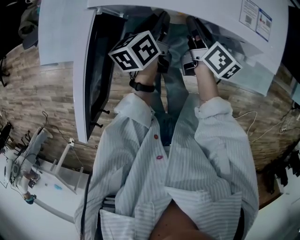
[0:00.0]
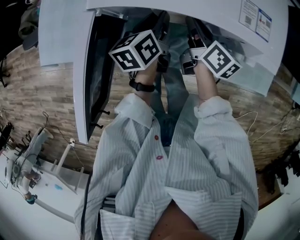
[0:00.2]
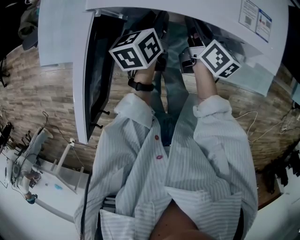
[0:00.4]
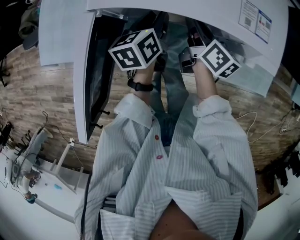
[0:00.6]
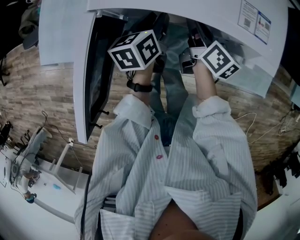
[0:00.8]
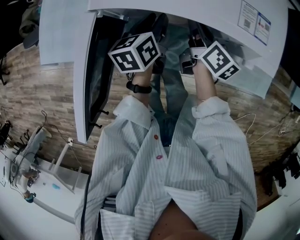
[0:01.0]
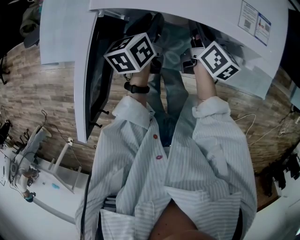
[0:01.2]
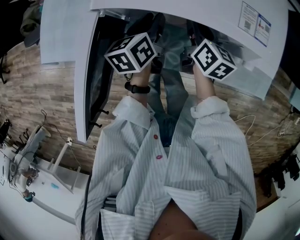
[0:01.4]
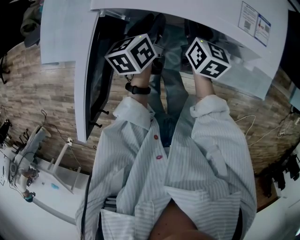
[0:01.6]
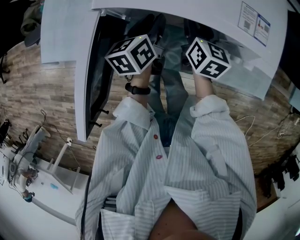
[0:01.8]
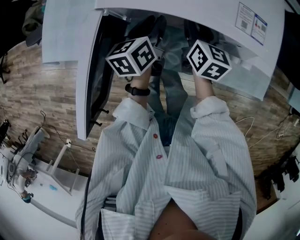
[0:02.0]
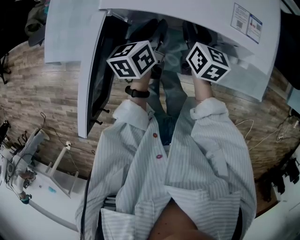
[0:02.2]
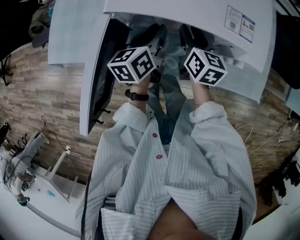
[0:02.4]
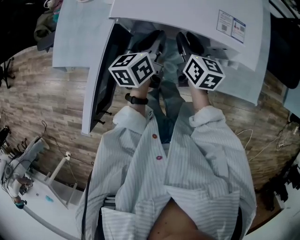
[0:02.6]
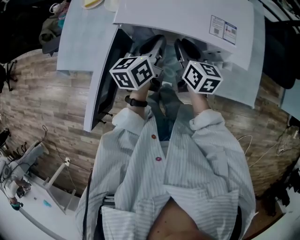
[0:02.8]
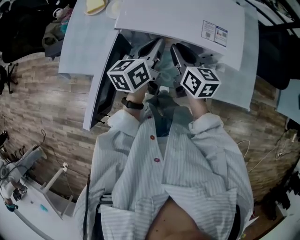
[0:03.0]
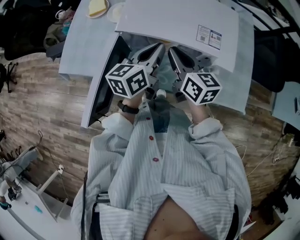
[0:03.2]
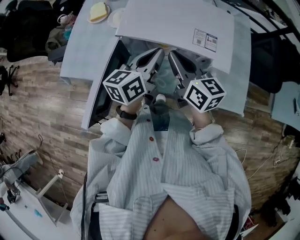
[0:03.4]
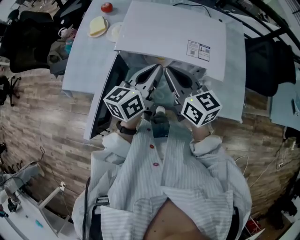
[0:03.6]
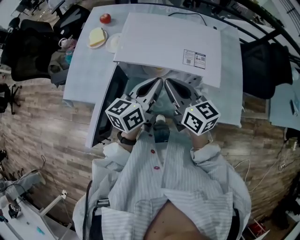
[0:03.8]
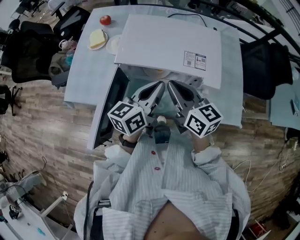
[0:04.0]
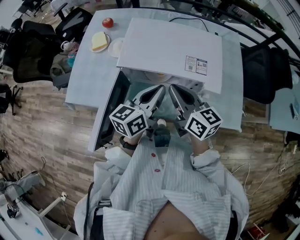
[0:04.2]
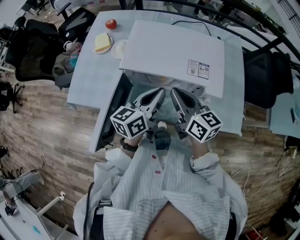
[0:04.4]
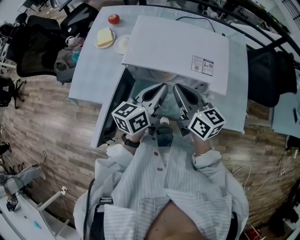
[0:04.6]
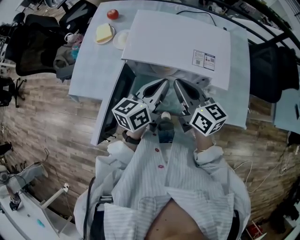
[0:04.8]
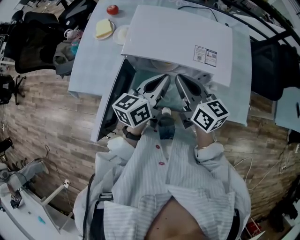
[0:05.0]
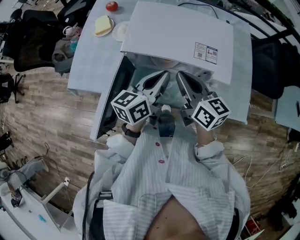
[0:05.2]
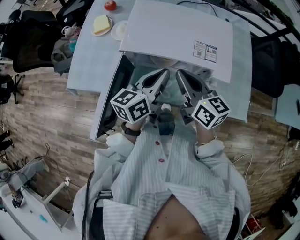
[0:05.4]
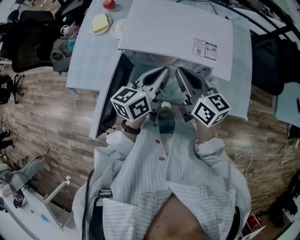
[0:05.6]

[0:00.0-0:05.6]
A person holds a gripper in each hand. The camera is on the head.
0:00.0 to 0:01.4: The grippers move only a little.
0:01.4 to 0:02.8: The grippers both shift upward by roughly 10 cm.
0:02.8 to 0:04.2: Both grippers move upward and backward, approximately 15 cm. The right gripper rotates some 20 degrees.
0:04.2 to 0:05.6: There are only small adjustments of the grippers.

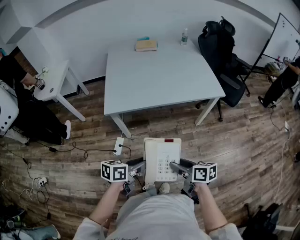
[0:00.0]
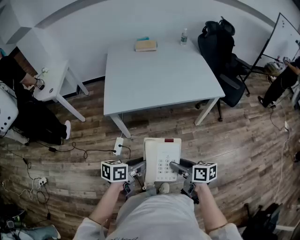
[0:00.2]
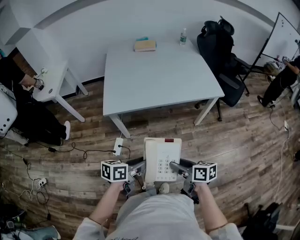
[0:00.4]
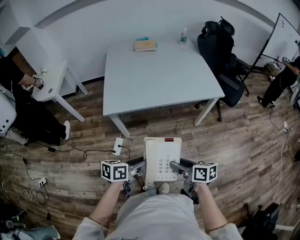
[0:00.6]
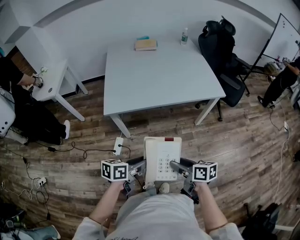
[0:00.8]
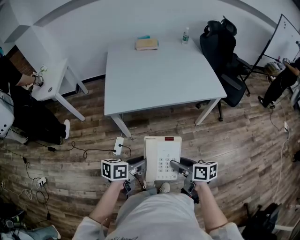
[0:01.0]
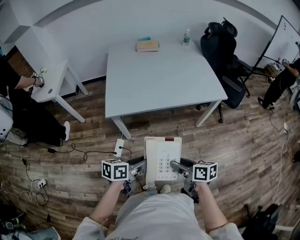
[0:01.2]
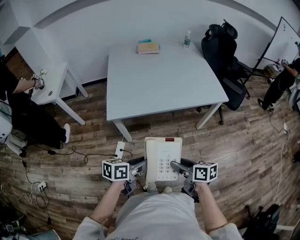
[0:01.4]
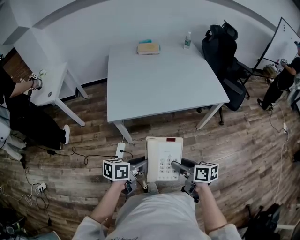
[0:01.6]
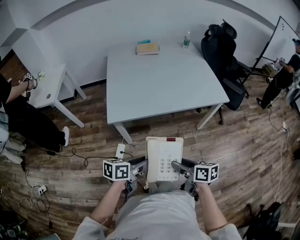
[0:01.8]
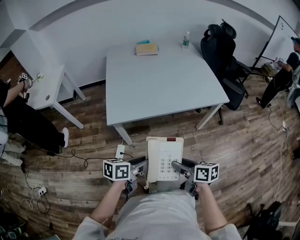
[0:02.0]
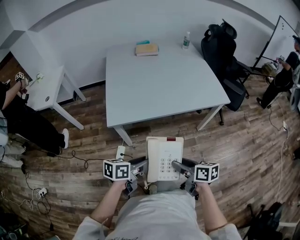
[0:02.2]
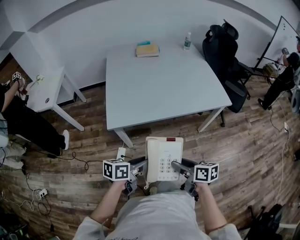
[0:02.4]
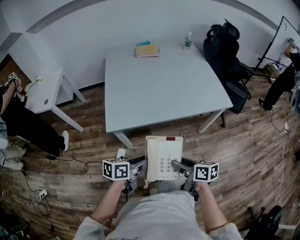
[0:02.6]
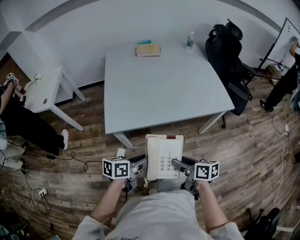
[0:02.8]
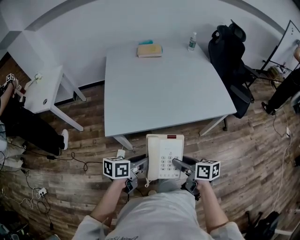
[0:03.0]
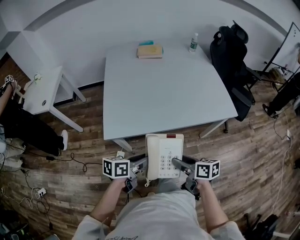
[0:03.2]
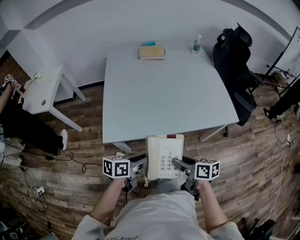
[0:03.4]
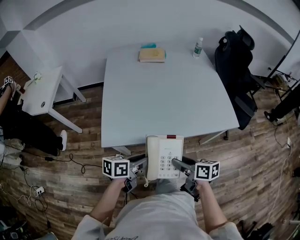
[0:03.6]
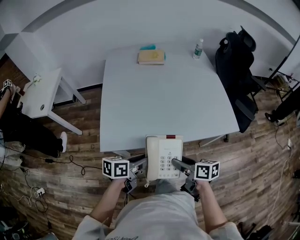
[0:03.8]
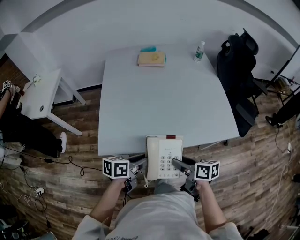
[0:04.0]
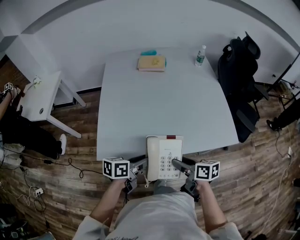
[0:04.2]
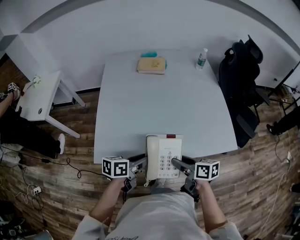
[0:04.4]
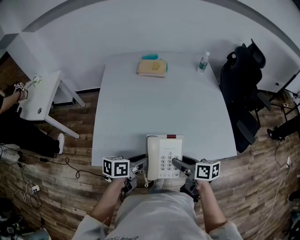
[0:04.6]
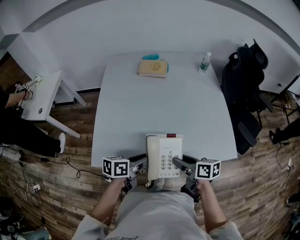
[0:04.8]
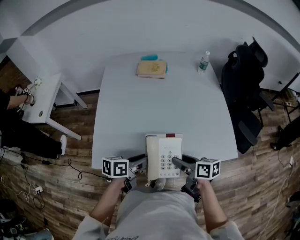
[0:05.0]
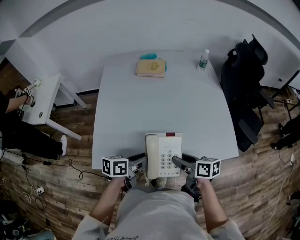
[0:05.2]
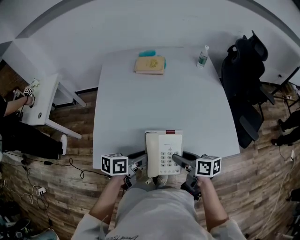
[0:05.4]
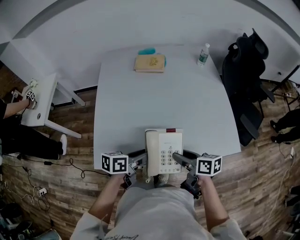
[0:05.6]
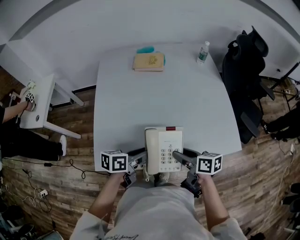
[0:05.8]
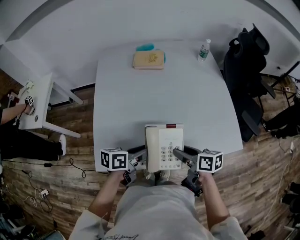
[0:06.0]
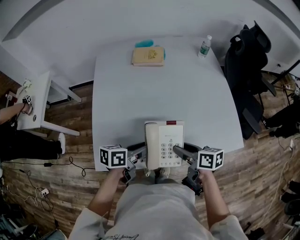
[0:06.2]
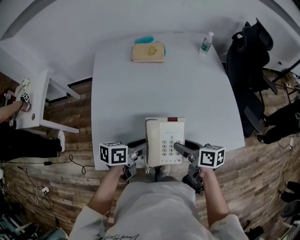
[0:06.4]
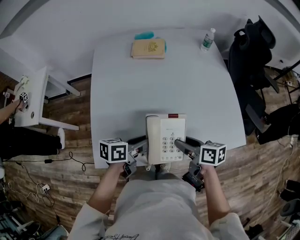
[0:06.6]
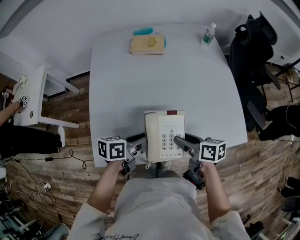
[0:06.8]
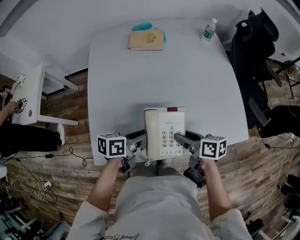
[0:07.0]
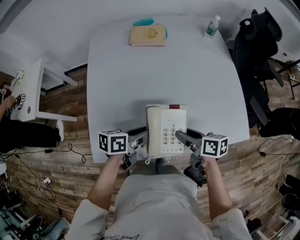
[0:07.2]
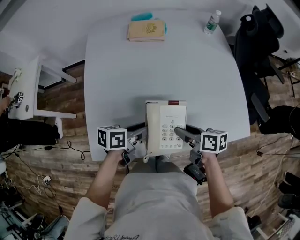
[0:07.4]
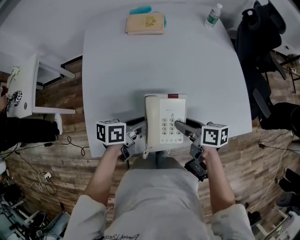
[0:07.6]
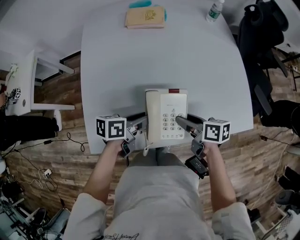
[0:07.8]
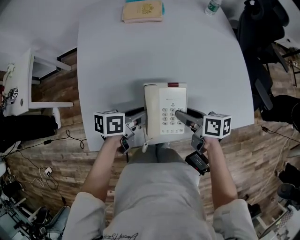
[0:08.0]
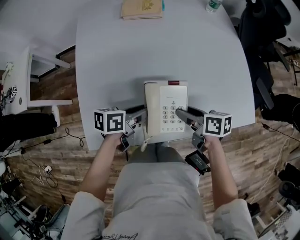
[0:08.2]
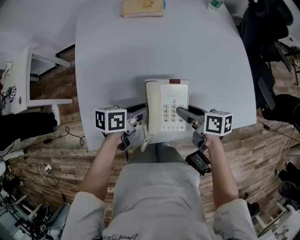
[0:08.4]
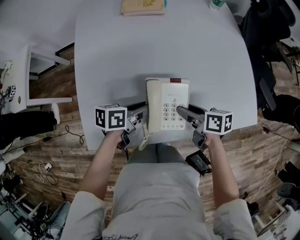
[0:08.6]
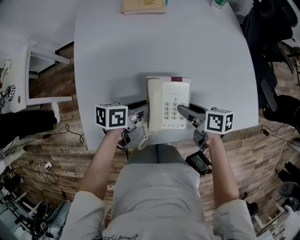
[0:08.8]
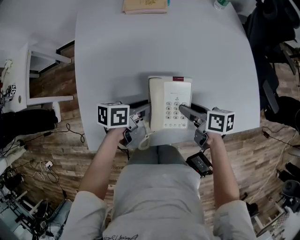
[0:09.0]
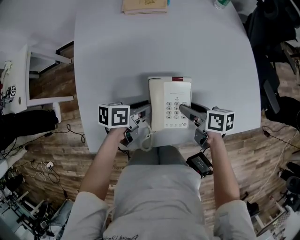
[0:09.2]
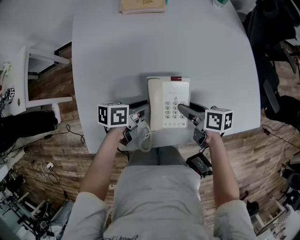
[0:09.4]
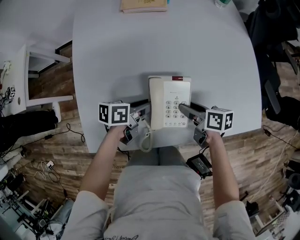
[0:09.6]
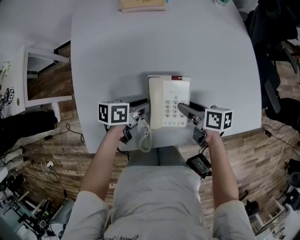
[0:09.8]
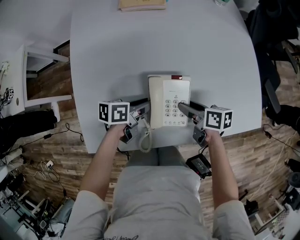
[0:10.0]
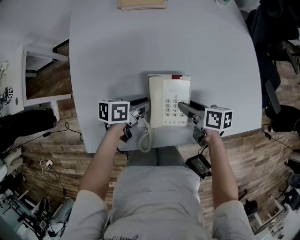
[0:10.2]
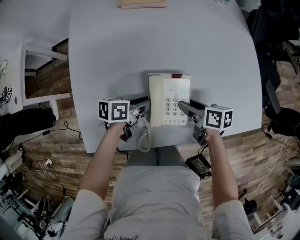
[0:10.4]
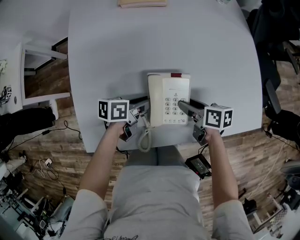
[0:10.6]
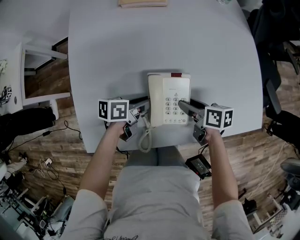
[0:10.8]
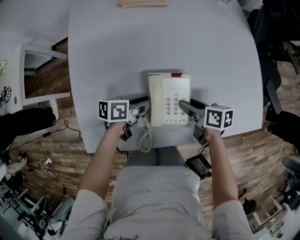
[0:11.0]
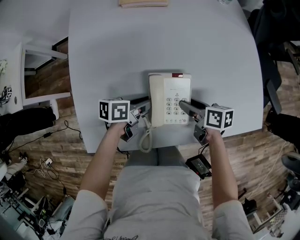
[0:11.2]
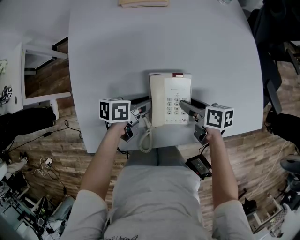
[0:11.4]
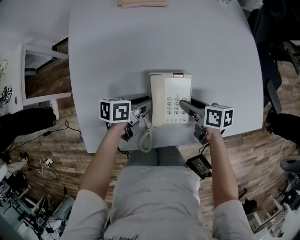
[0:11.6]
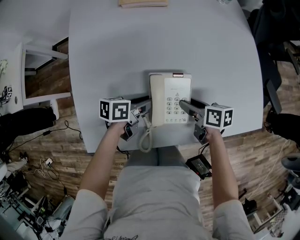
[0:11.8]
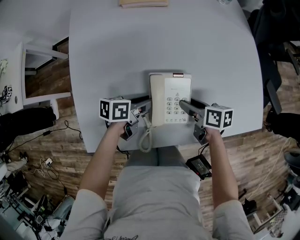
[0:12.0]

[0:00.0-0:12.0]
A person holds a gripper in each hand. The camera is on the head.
0:00.0 to 0:01.6: Both grippers travel together forward, about 5 cm.
0:01.6 to 0:03.0: Both grippers move forward, some 15 cm.
0:03.0 to 0:04.4: The grippers both shift forward by approximately 20 cm.
0:04.4 to 0:06.0: Both grippers move forward, some 10 cm.
0:06.0 to 0:07.6: The left gripper shifts some 10 cm forward and downward, while the right gripper goes roughly 10 cm downward and forward.
0:07.6 to 0:09.0: The two grippers go about 5 cm downward.
0:09.0 to 0:10.4: The grippers make only small movements.
0:10.4 to 0:12.0: The two grippers keep their place.

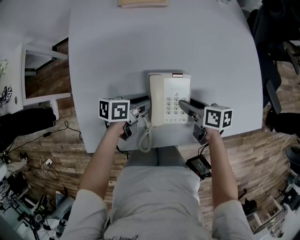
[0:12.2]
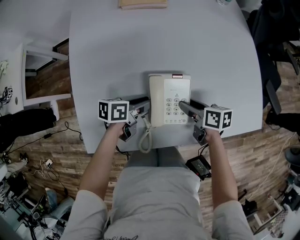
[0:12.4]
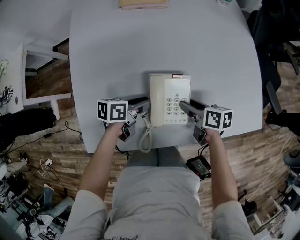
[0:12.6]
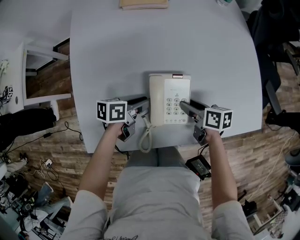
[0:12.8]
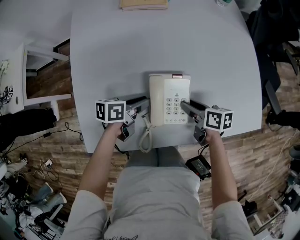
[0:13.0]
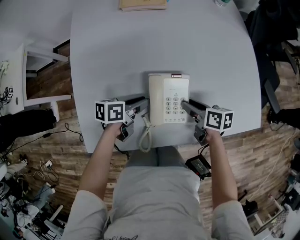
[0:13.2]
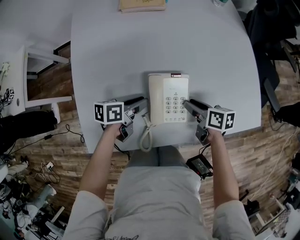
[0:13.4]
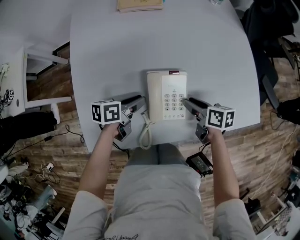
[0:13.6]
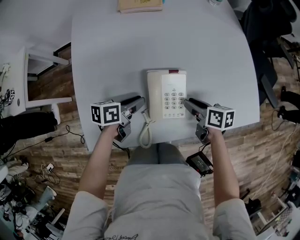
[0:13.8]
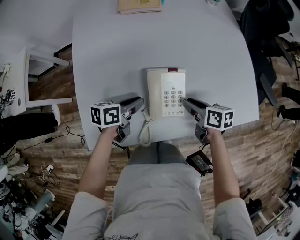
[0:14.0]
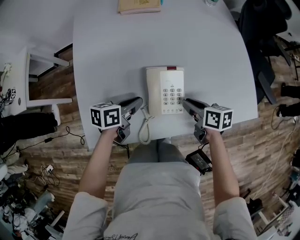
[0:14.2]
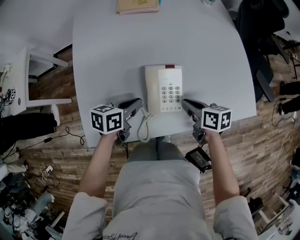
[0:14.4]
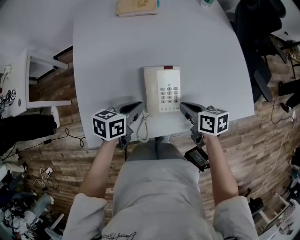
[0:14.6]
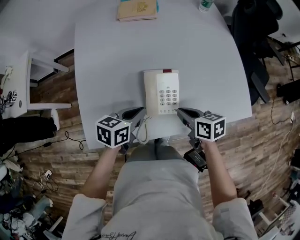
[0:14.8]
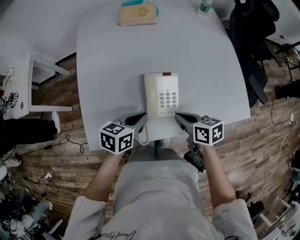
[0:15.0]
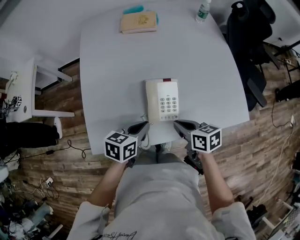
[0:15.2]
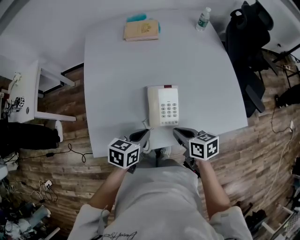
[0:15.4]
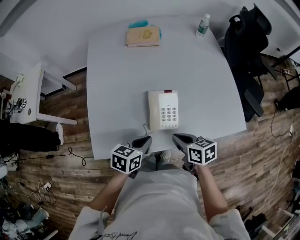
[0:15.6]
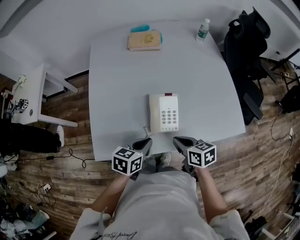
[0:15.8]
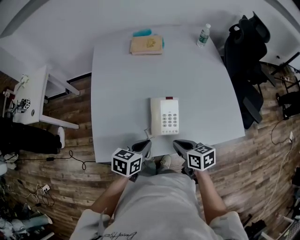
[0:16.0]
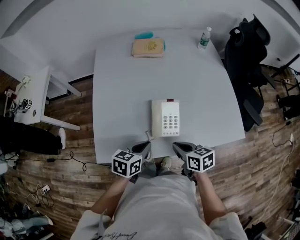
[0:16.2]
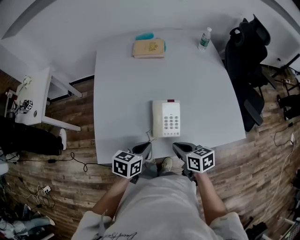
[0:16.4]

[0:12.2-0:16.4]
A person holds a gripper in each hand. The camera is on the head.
0:12.2 to 0:13.6: There are only small adjustments of the grippers.
0:13.6 to 0:15.0: The right gripper is displaced backward and upward by approximately 10 cm, and closes its fingers, while the left gripper goes approximately 15 cm upward and backward, swivels about 20 degrees, and closes up.
0:15.0 to 0:16.4: The left gripper shifts roughly 5 cm backward, while the right gripper ends up approximately 5 cm from where it was.

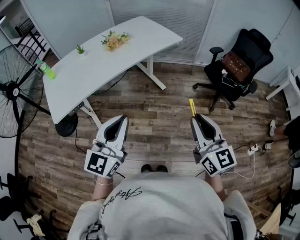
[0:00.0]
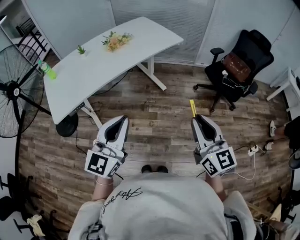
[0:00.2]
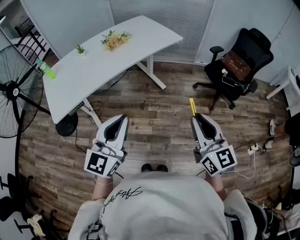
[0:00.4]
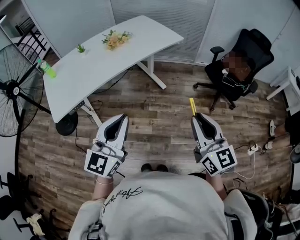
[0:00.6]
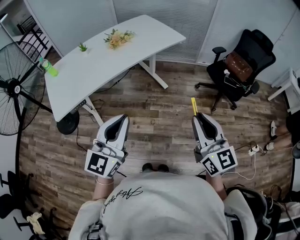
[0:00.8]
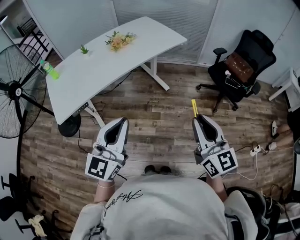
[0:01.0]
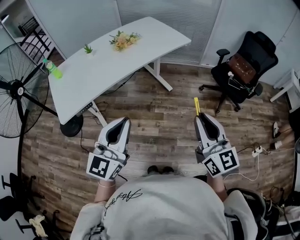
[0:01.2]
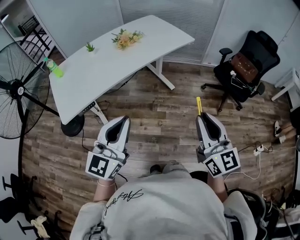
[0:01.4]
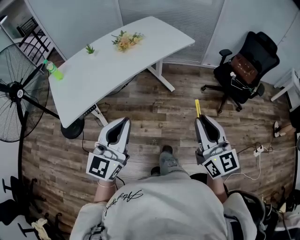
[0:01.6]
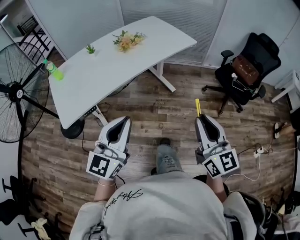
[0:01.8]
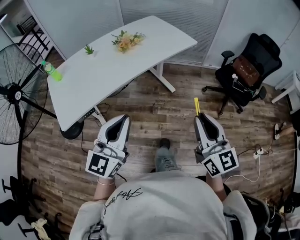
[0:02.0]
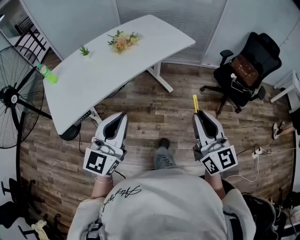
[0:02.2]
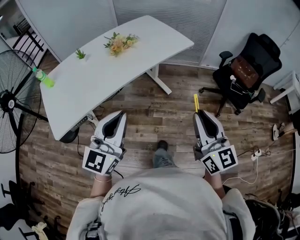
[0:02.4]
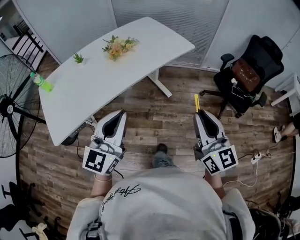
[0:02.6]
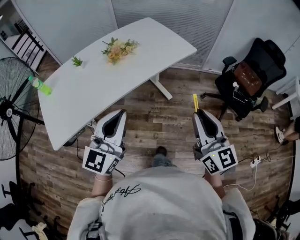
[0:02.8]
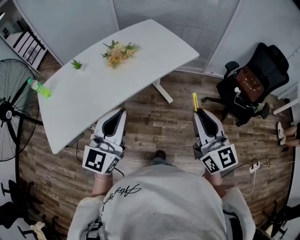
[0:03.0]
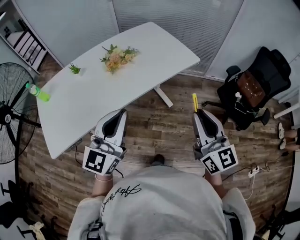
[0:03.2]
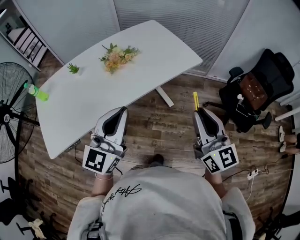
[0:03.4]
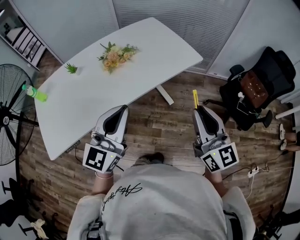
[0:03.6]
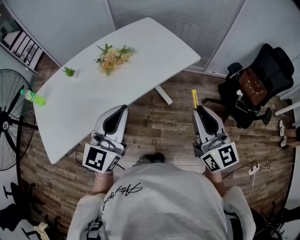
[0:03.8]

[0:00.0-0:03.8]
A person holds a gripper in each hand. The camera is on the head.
0:00.0 to 0:01.2: The grippers move only a little.
0:01.2 to 0:02.6: The grippers both shift forward by approximately 15 cm.
0:02.6 to 0:03.8: Both grippers travel together forward, about 15 cm.
